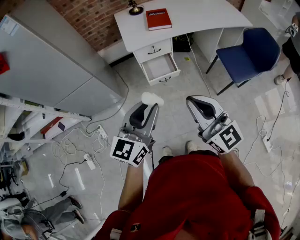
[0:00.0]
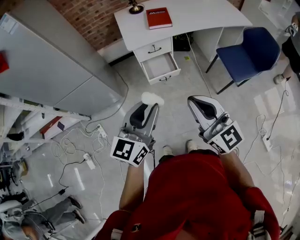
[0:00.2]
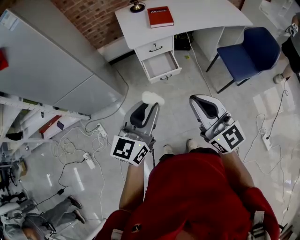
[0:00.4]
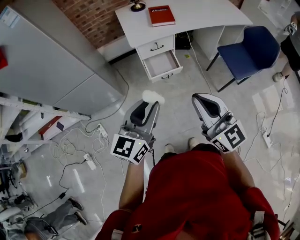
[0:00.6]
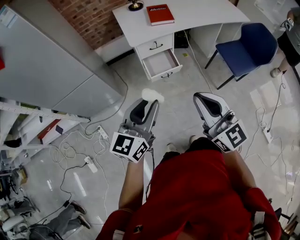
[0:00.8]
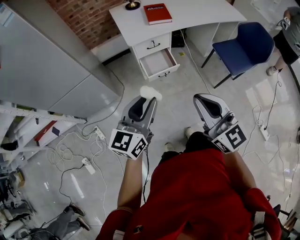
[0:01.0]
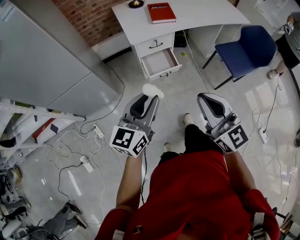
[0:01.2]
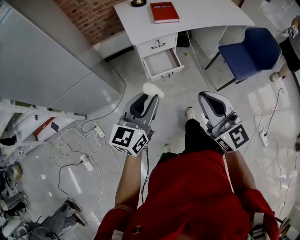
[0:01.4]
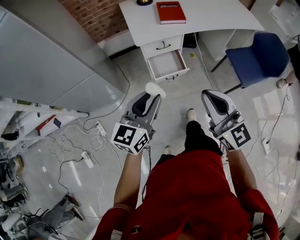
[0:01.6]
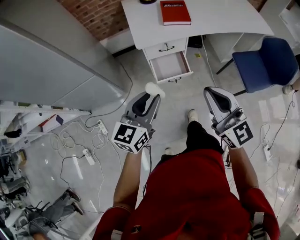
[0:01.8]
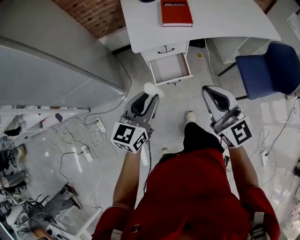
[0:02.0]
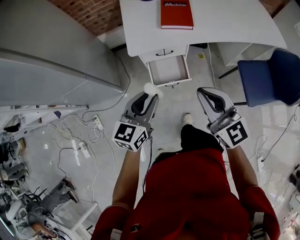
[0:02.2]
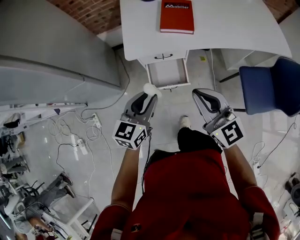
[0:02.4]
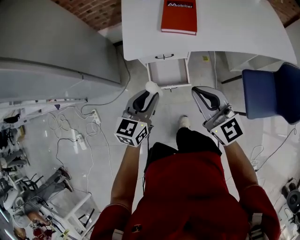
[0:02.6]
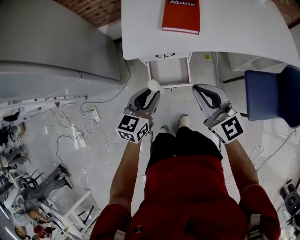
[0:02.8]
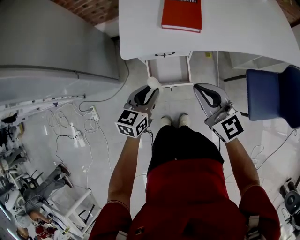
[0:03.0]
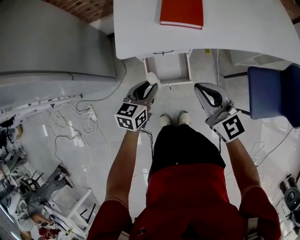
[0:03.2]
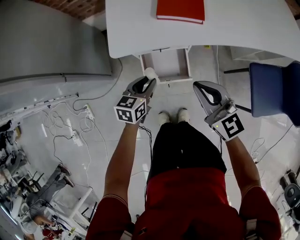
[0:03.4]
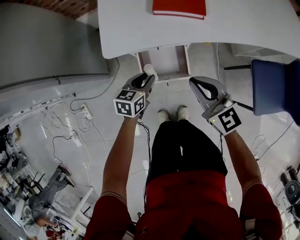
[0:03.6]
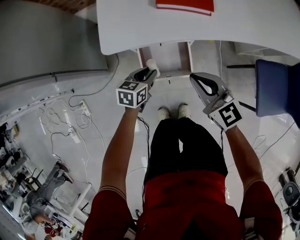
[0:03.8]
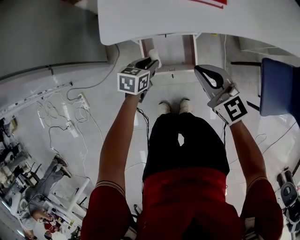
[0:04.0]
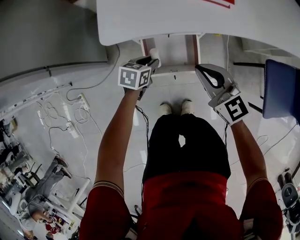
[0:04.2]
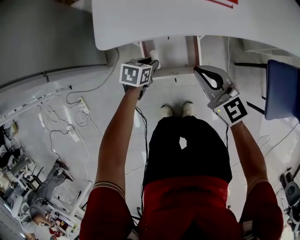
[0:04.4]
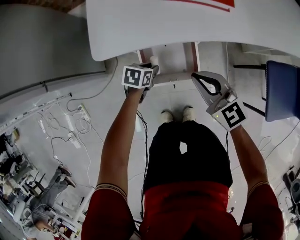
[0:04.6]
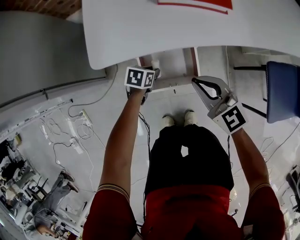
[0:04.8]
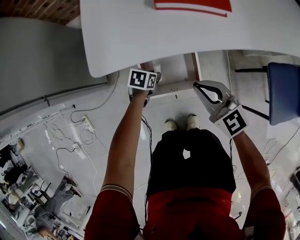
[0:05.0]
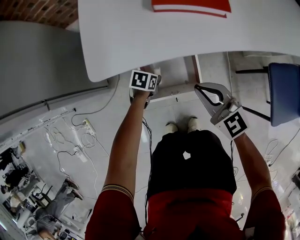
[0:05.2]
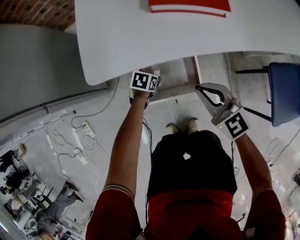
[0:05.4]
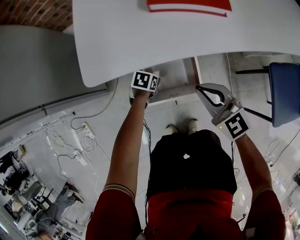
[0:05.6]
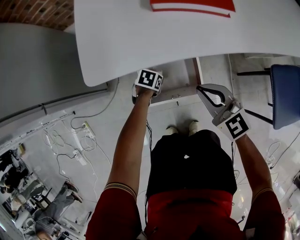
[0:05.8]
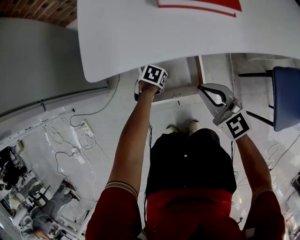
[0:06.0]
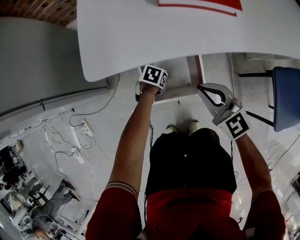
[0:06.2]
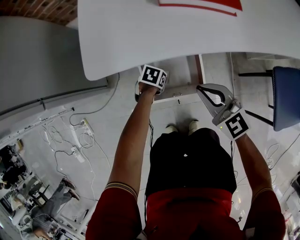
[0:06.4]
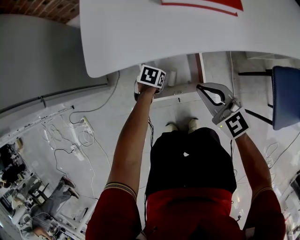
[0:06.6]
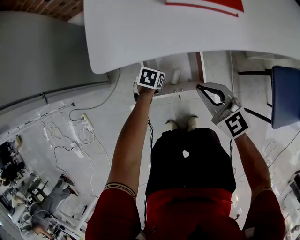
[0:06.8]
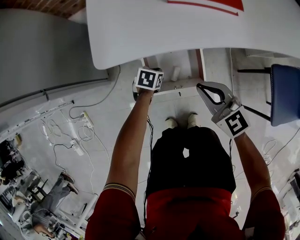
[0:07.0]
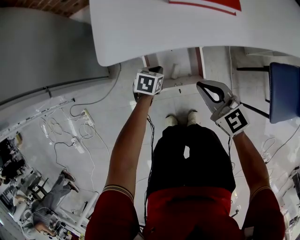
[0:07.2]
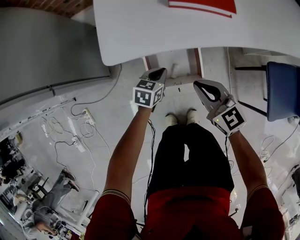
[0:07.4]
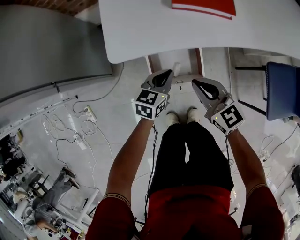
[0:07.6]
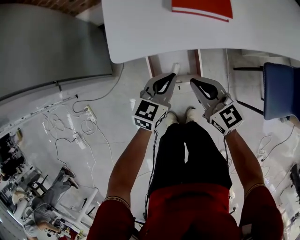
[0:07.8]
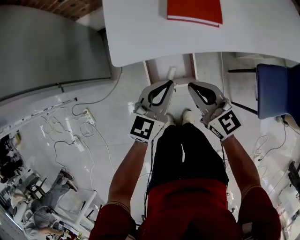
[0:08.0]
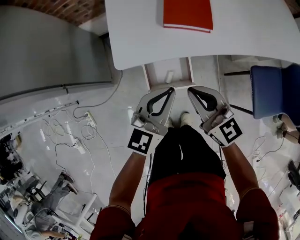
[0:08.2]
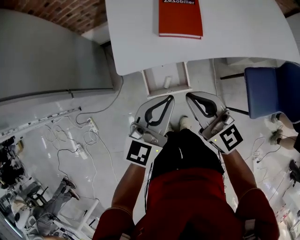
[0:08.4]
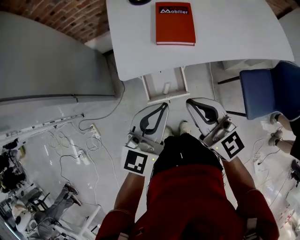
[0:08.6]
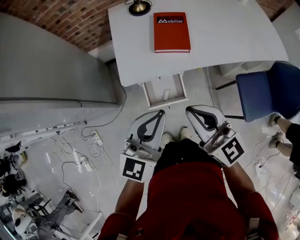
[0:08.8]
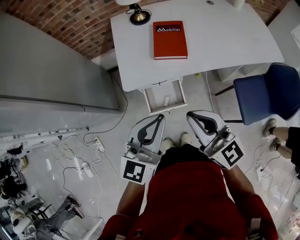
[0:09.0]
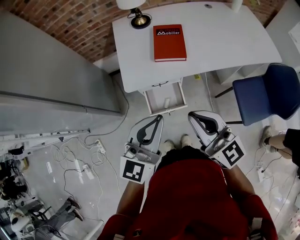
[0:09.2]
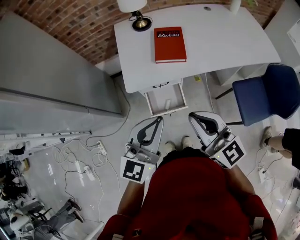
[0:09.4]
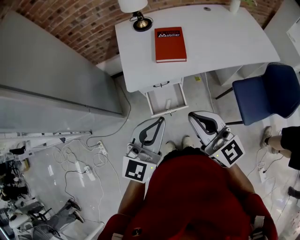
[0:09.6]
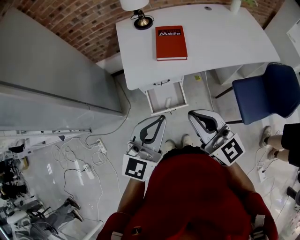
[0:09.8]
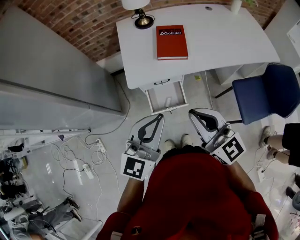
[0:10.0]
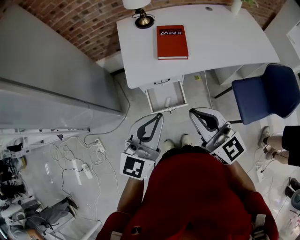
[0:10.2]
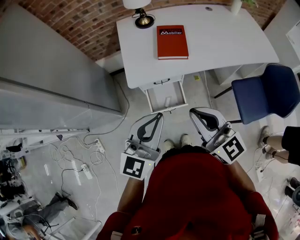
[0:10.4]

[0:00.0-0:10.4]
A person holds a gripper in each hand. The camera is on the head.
0.0 to 1.4 s: The left gripper heads to the left and forward, covering about 10 cm. The right gripper moves to the left, approximately 5 cm.
1.4 to 3.0 s: The right gripper moves forward and downward, approximately 40 cm, and turns by some 20 degrees. The left gripper goes approximately 40 cm forward, downward and to the right, and changes its angle by some 30 degrees.
3.0 to 4.4 s: The grippers both shift downward by approximately 25 cm. The left gripper rotates some 30 degrees.
4.4 to 6.0 s: The right gripper heads downward, covering some 10 cm; the left gripper travels downward by about 15 cm, and changes its angle by about 20 degrees.
6.0 to 7.4 s: The left gripper shifts approximately 15 cm upward, turns by approximately 30 degrees, and closes, while the right gripper moves some 5 cm.
7.4 to 9.0 s: The two grippers go some 50 cm upward. The right gripper rotates some 30 degrees; the left gripper angles its fingers upward, by about 40 degrees.
9.0 to 10.4 s: The left gripper shifts by about 5 cm.

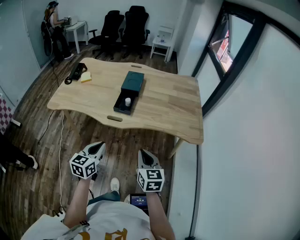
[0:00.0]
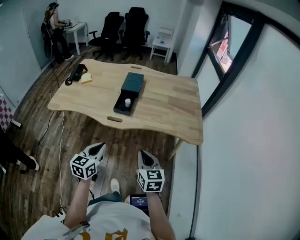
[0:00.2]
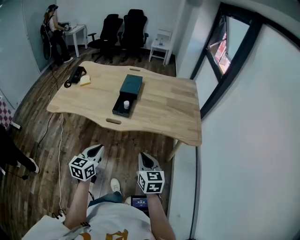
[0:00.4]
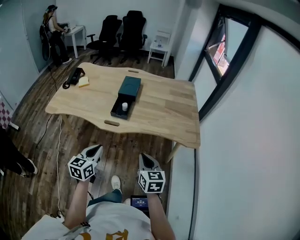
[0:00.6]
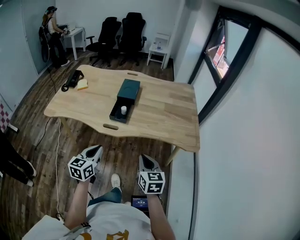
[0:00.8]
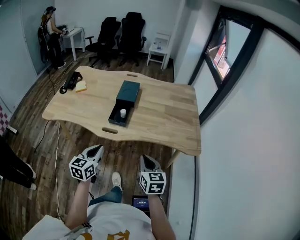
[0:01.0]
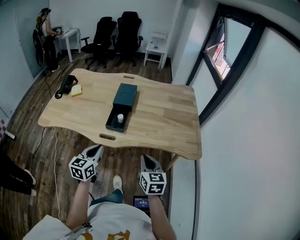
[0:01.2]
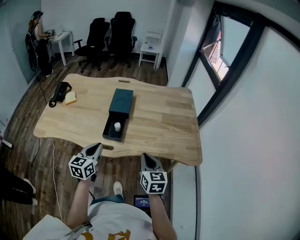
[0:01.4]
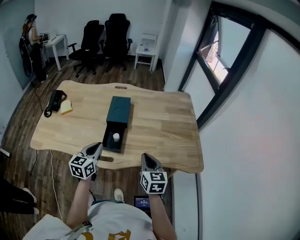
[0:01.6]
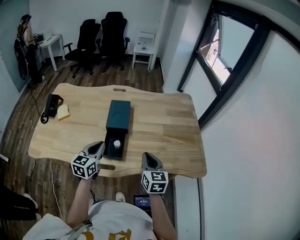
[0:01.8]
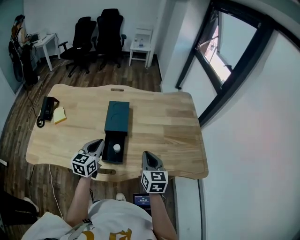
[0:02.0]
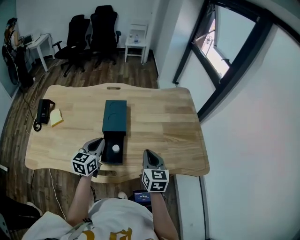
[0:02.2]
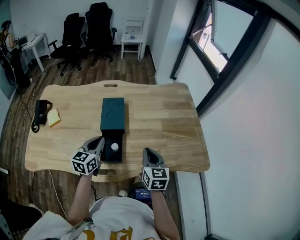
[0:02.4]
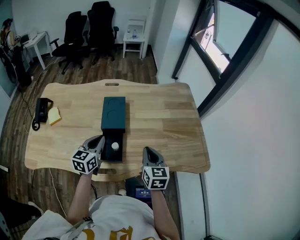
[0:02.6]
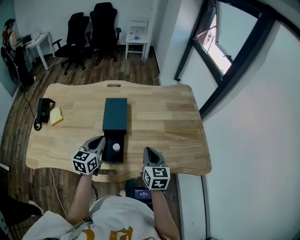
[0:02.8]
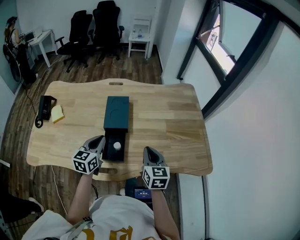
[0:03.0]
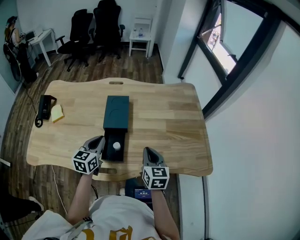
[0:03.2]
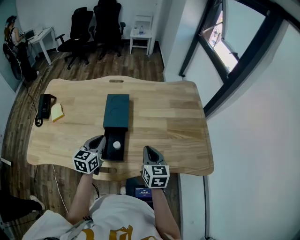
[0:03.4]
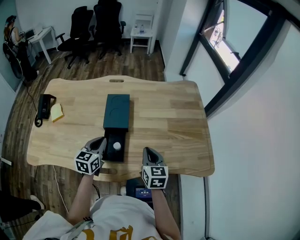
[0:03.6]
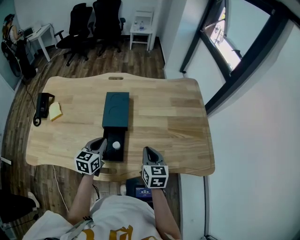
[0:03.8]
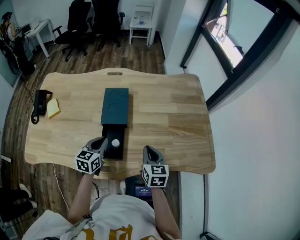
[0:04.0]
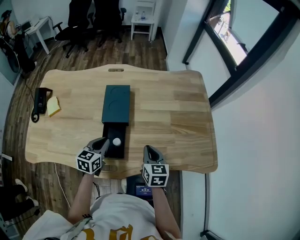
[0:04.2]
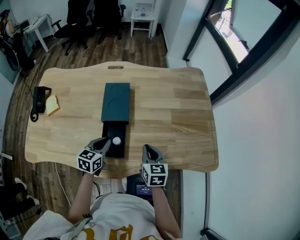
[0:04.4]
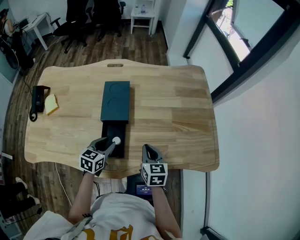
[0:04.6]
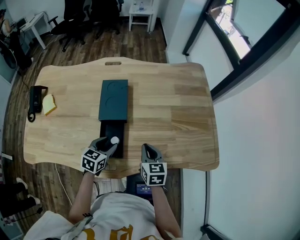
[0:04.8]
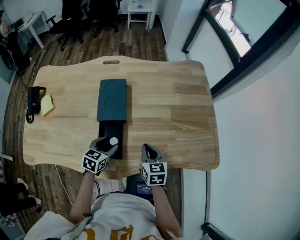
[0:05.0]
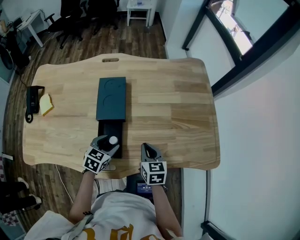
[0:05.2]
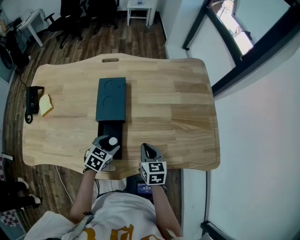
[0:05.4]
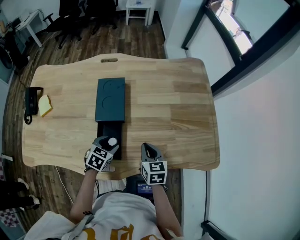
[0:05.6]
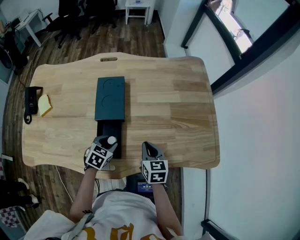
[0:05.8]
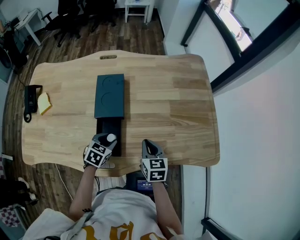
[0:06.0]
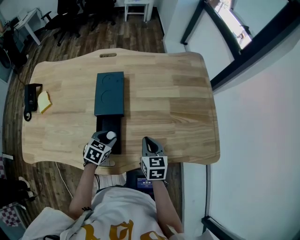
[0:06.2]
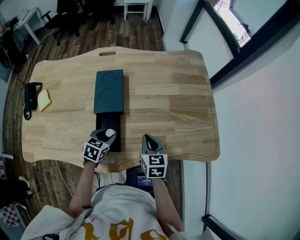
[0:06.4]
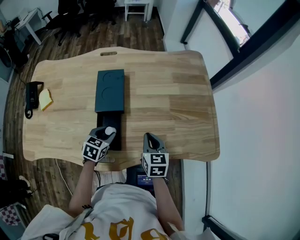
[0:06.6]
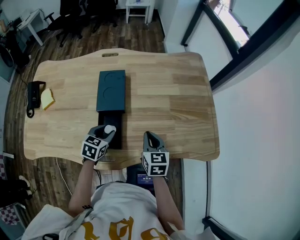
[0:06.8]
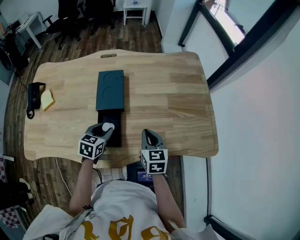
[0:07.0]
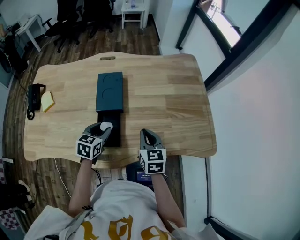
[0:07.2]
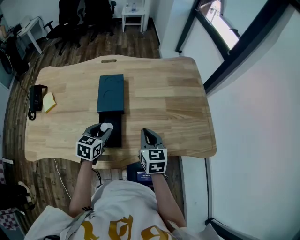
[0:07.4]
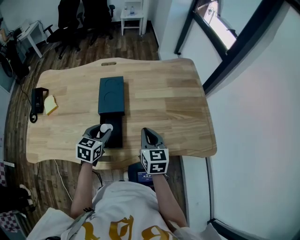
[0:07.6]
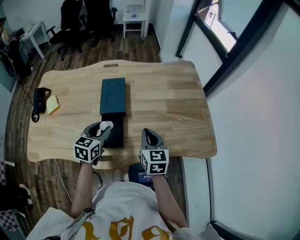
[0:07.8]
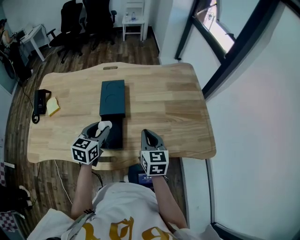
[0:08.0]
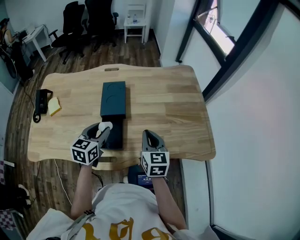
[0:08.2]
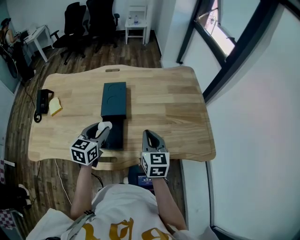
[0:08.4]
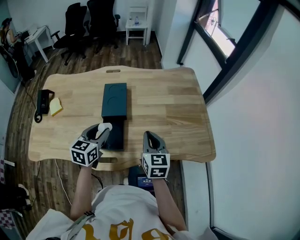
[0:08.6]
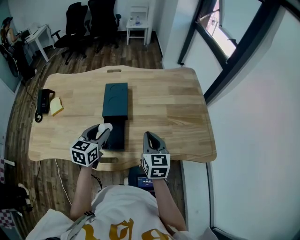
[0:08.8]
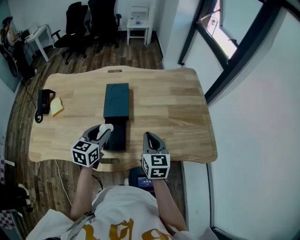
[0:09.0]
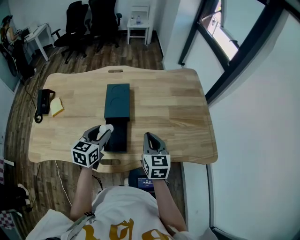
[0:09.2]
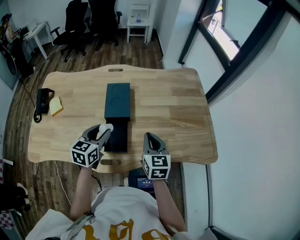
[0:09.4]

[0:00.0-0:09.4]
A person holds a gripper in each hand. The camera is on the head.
0.0 to 1.6 s: The grippers both shift forward by some 25 cm.
1.6 to 3.2 s: The two grippers go about 15 cm forward.
3.2 to 4.8 s: The two grippers go roughly 10 cm downward. The left gripper swivels roughly 20 degrees, and opens up.
4.8 to 6.2 s: There are only small adjustments of the grippers.
6.2 to 7.8 s: Both grippers travel together upward, some 10 cm. The left gripper swivels approximately 20 degrees.
7.8 to 9.4 s: The grippers move only a little.

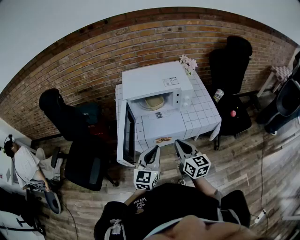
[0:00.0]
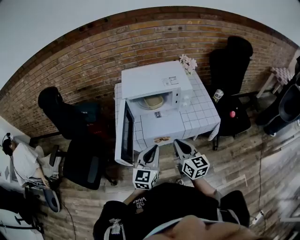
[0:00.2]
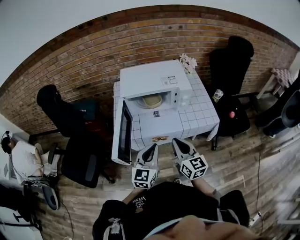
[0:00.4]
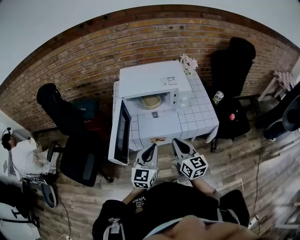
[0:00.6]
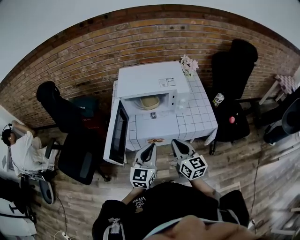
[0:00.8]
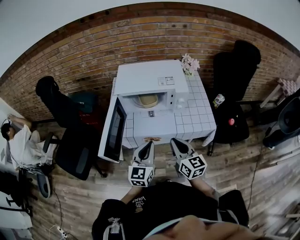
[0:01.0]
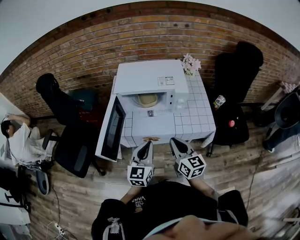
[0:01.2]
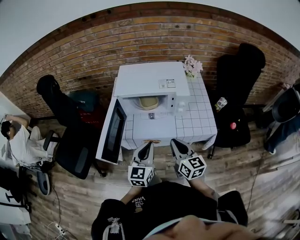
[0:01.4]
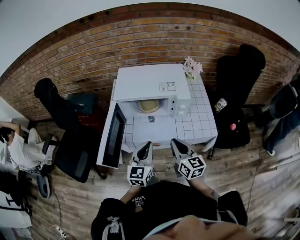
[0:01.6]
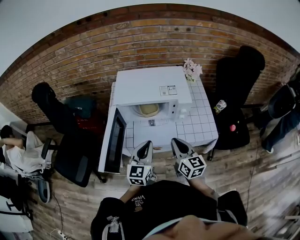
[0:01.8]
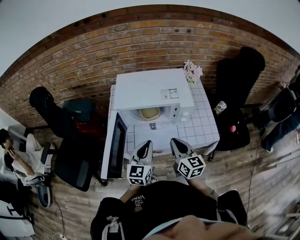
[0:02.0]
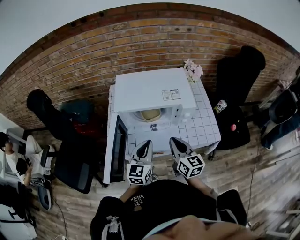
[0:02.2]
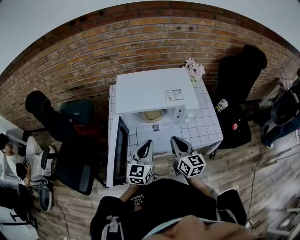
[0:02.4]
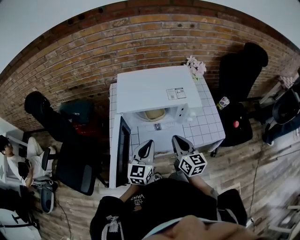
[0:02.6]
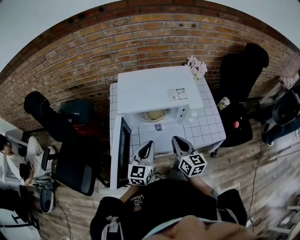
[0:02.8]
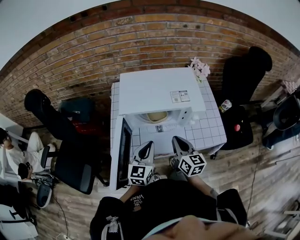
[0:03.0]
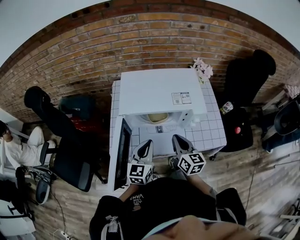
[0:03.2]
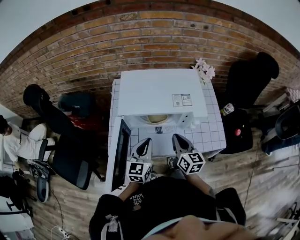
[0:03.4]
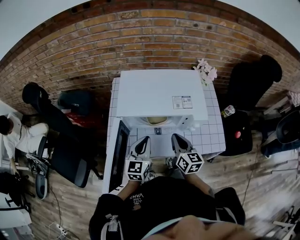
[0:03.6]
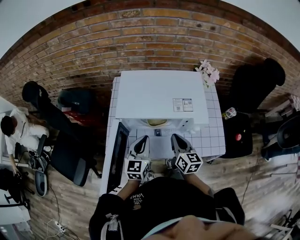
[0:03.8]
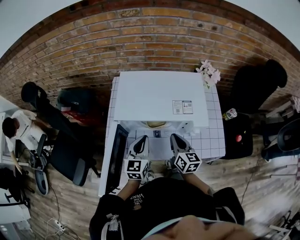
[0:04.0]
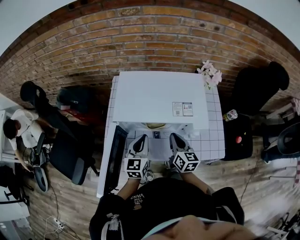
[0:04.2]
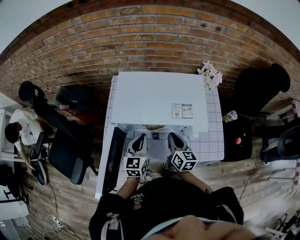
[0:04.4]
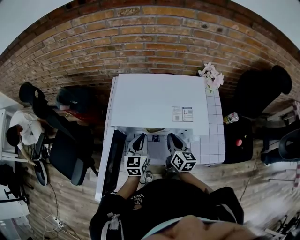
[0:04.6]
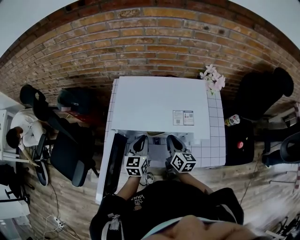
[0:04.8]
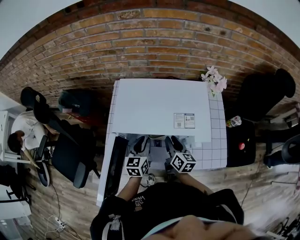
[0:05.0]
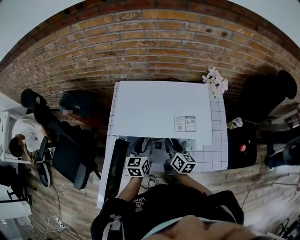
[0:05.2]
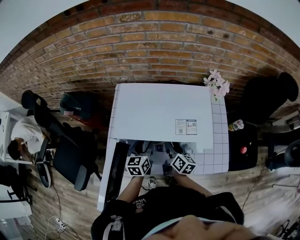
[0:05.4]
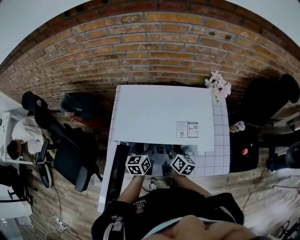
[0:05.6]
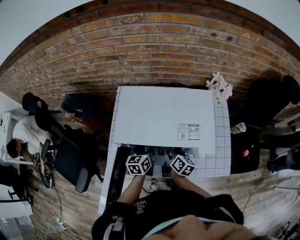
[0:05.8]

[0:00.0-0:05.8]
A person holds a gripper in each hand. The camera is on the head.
0.0 to 1.4 s: Both grippers move to the right and forward, approximately 10 cm.
1.4 to 2.8 s: Both grippers travel together forward and to the left, some 15 cm.
2.8 to 4.4 s: The left gripper goes some 10 cm forward. The right gripper moves forward and downward, approximately 15 cm.
4.4 to 5.8 s: The grippers both shift forward and downward by about 10 cm. The right gripper swivels approximately 20 degrees, and opens up; the left gripper swivels about 20 degrees, and opens up.
